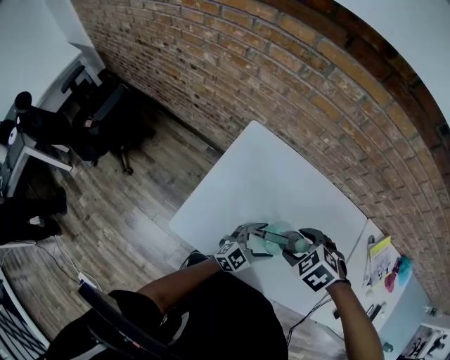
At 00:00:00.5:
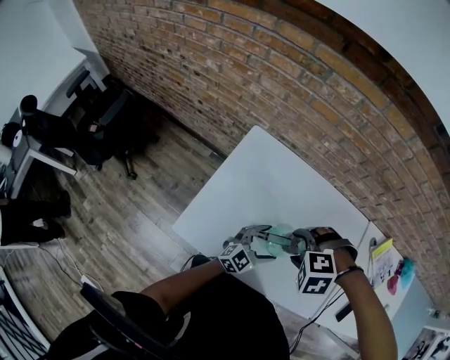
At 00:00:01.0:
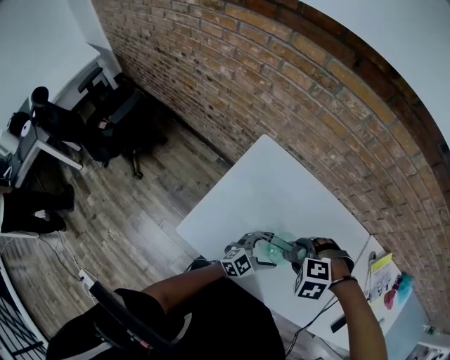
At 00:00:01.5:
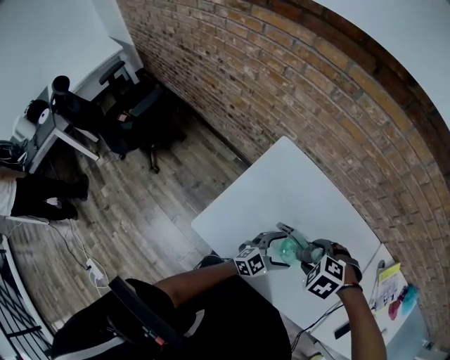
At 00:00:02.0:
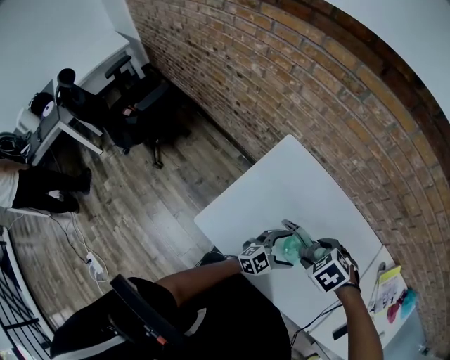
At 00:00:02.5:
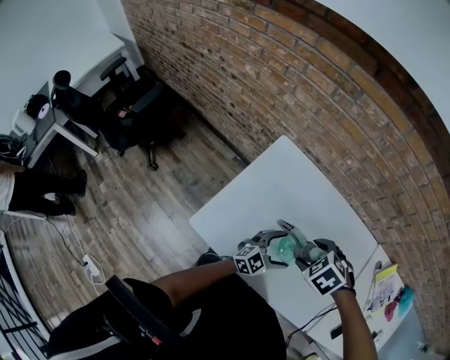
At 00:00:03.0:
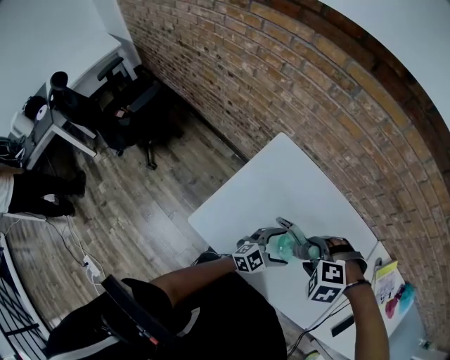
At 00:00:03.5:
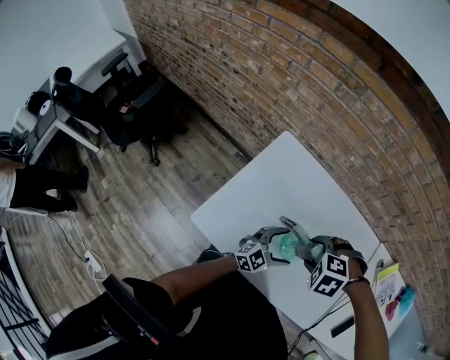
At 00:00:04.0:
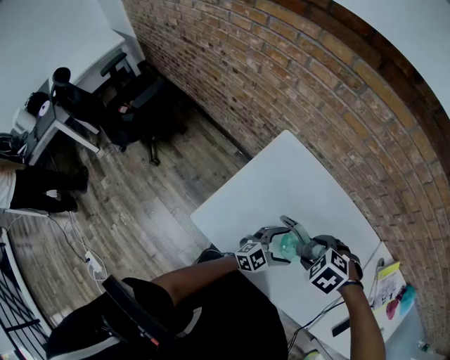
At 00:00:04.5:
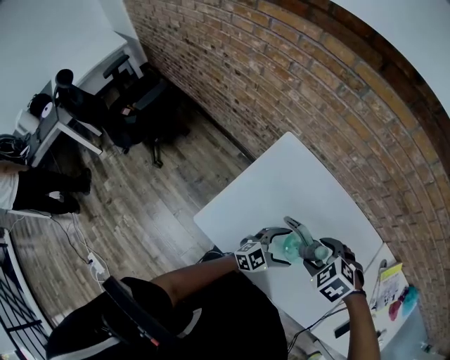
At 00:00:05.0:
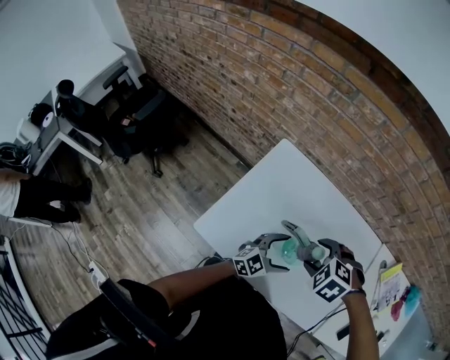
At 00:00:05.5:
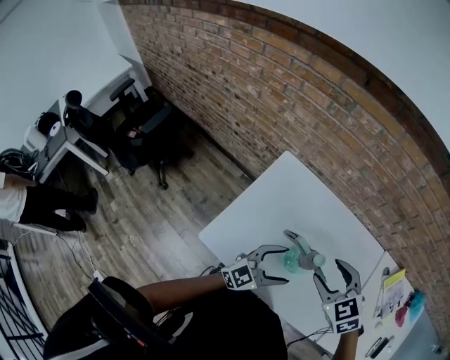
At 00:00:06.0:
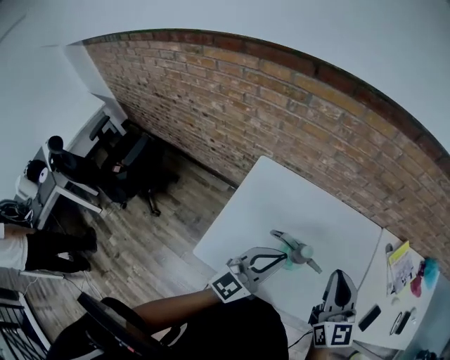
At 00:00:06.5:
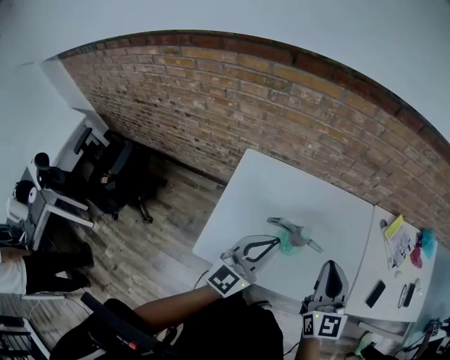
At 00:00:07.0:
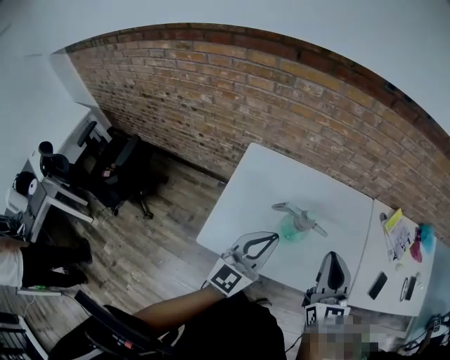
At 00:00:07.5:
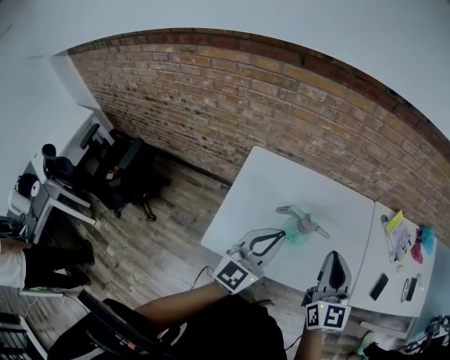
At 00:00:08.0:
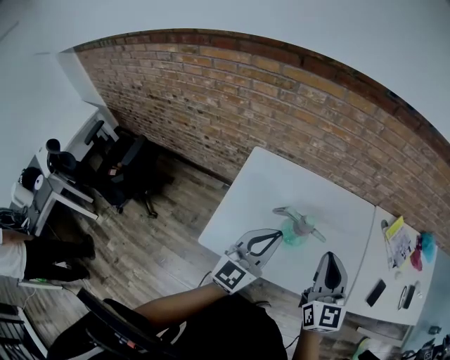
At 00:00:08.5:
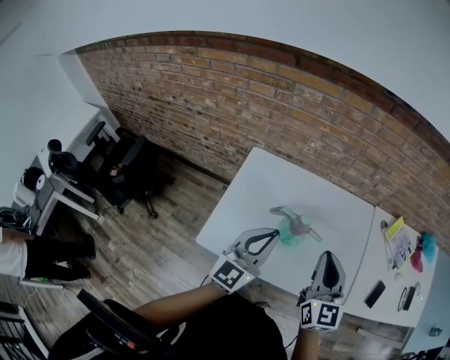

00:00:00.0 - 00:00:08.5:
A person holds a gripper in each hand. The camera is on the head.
00:00:04.0 - 00:00:06.5: The right gripper shifts some 20 cm upward, points its fingers approximately 80 degrees further upward, and closes up; the left gripper moves upward, some 25 cm, turns by approximately 20 degrees, and closes up.
00:00:06.5 - 00:00:08.5: There are only small adjustments of the grippers.

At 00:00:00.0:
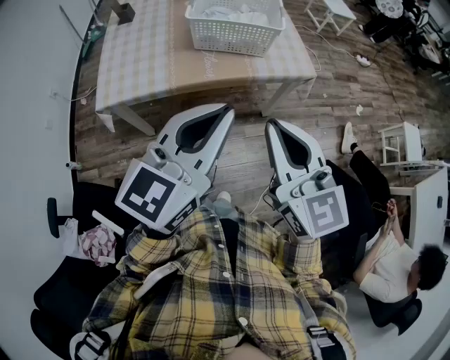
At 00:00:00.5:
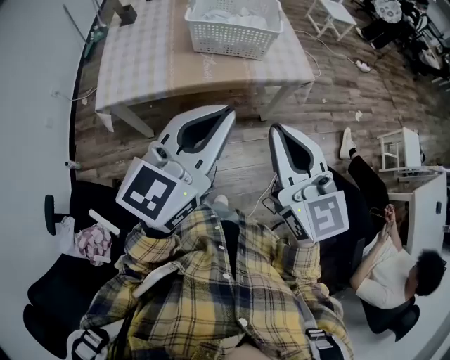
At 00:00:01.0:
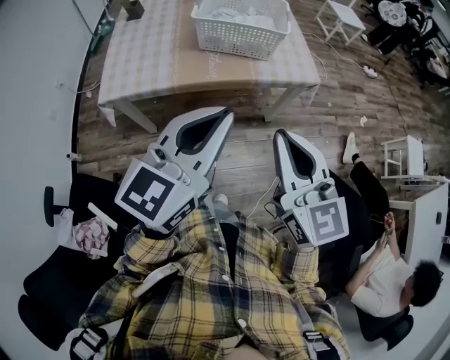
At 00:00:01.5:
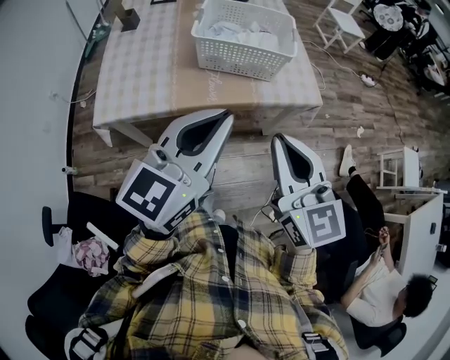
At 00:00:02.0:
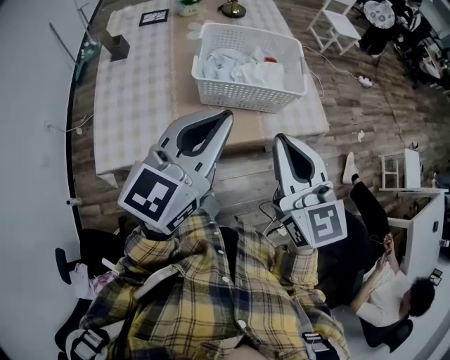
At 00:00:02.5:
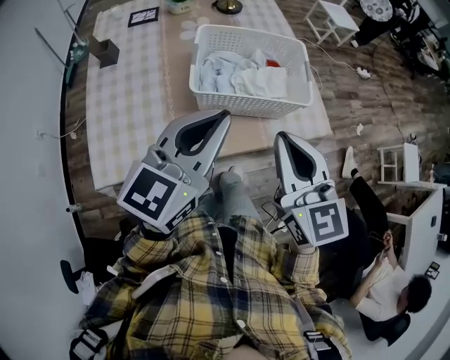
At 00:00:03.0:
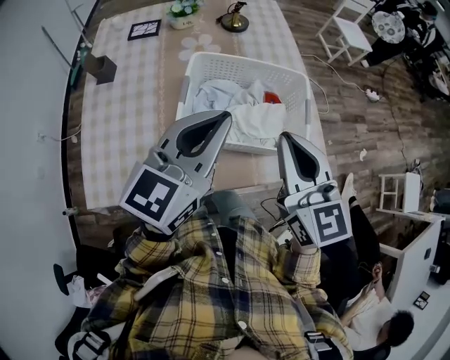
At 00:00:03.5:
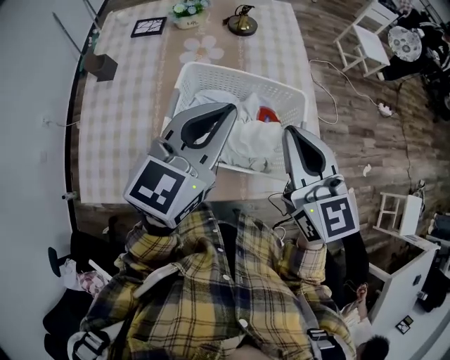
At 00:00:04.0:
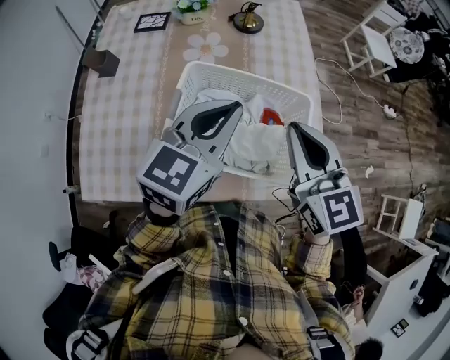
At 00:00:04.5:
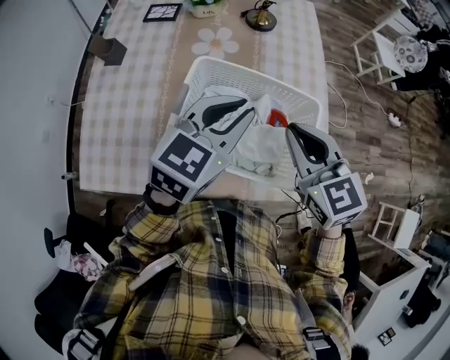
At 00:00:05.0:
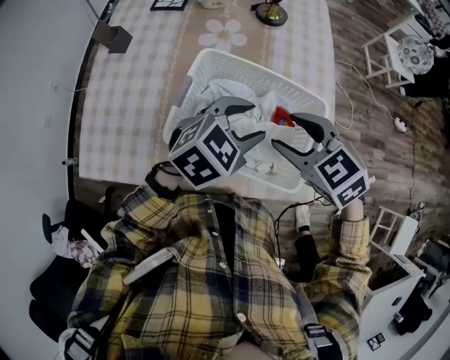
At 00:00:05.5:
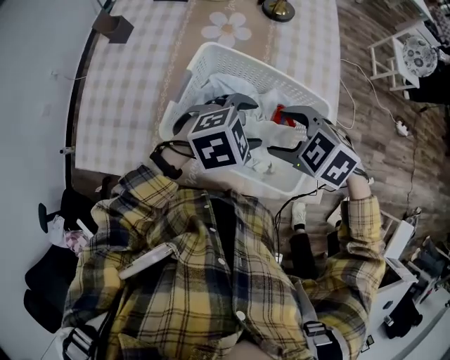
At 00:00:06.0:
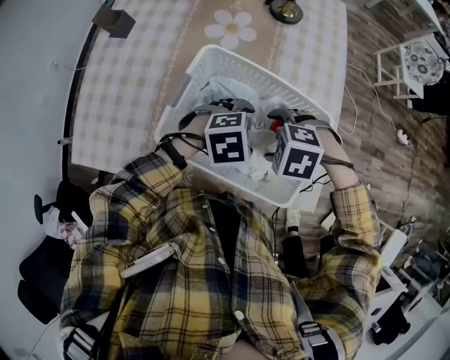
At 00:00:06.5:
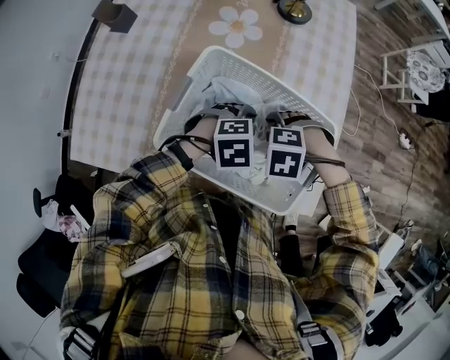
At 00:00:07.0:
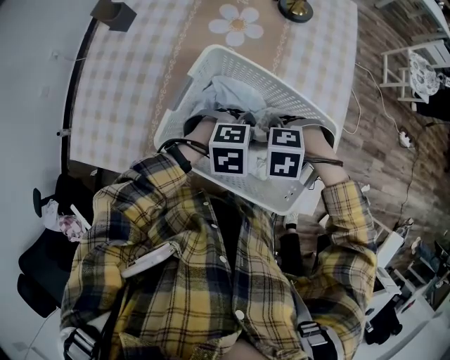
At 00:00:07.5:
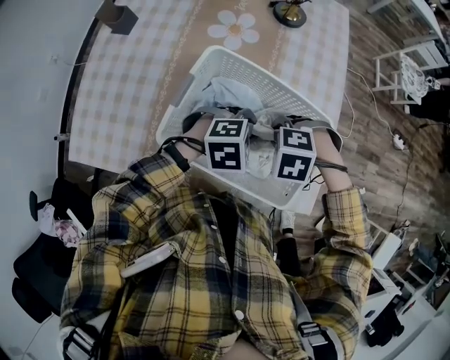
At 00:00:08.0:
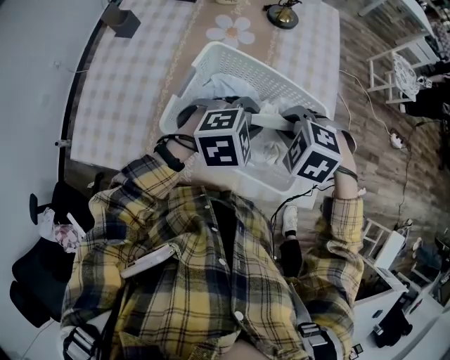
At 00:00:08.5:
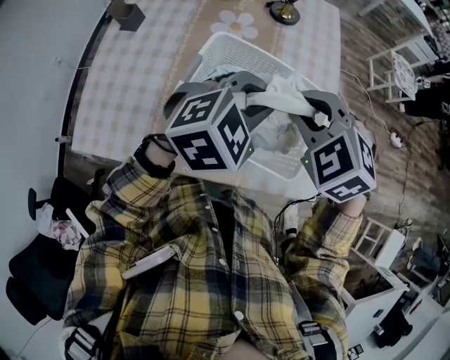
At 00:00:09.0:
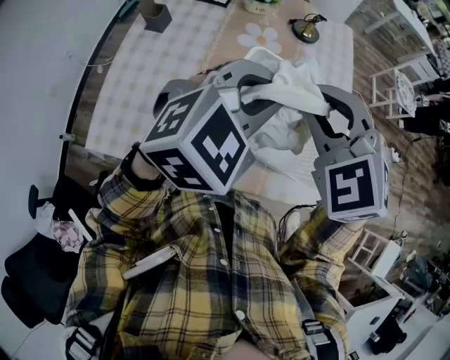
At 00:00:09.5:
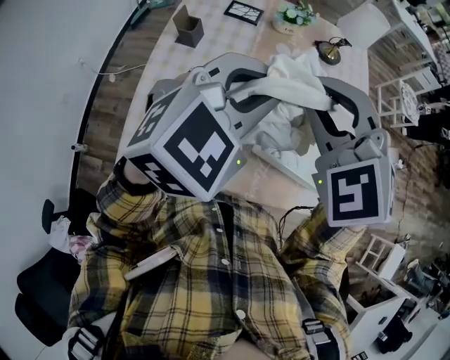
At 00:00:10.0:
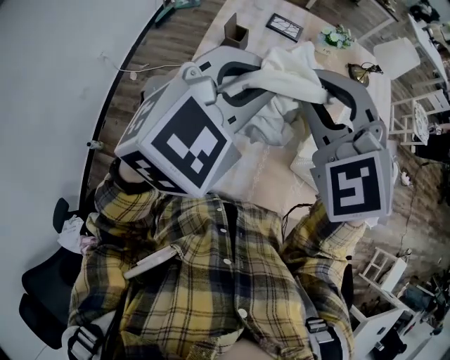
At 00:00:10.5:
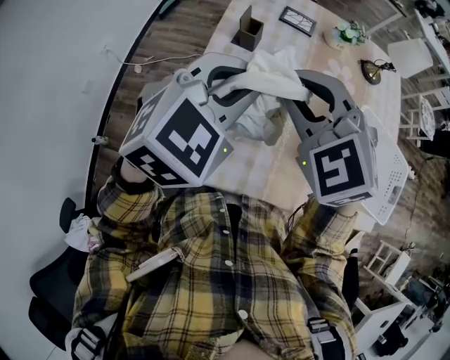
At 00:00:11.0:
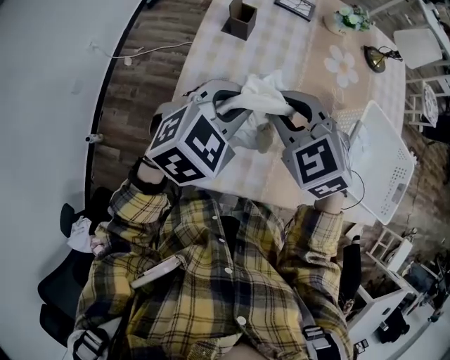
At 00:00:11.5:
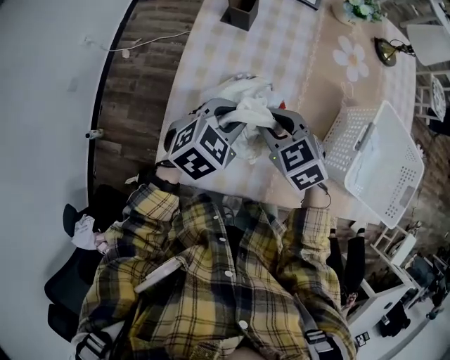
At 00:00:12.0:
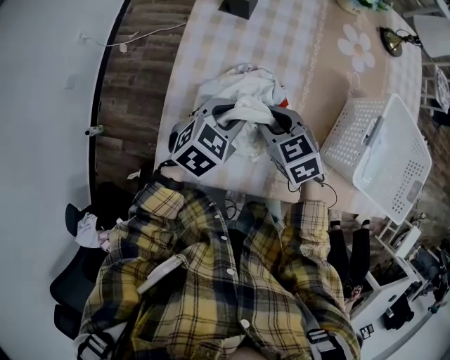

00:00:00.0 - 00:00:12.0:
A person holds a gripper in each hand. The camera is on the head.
00:00:00.0 - 00:00:02.0: Both grippers move forward, roughly 25 cm.
00:00:02.0 - 00:00:04.0: Both grippers travel together forward, approximately 30 cm.
00:00:04.0 - 00:00:06.0: Both grippers travel together downward, some 25 cm. The right gripper tips its fingers downward by roughly 60 degrees, and opens; the left gripper points its fingers roughly 50 degrees further downward, and opens.
00:00:06.0 - 00:00:08.0: The grippers both shift upward by approximately 5 cm. The right gripper closes its fingers. The left gripper closes up.
00:00:08.0 - 00:00:10.0: The two grippers travel together, to the left, some 40 cm. Both grippers travel together upward, about 25 cm. The left gripper swivels some 30 degrees. The right gripper tips its fingers upward by about 40 degrees.
00:00:10.0 - 00:00:12.0: Both grippers move downward, approximately 35 cm. The left gripper changes its angle by approximately 40 degrees. The right gripper rotates around the line of its fingers by roughly 40 degrees, clockwise from behind.

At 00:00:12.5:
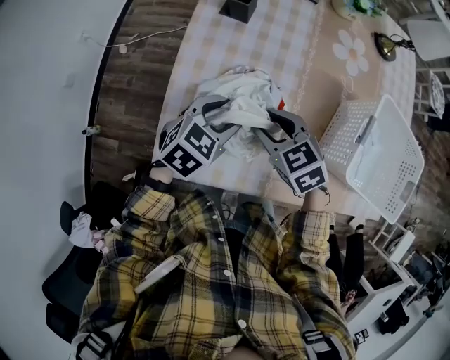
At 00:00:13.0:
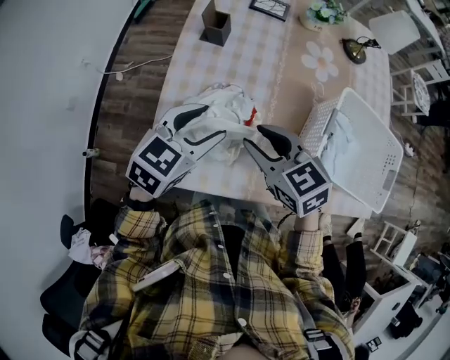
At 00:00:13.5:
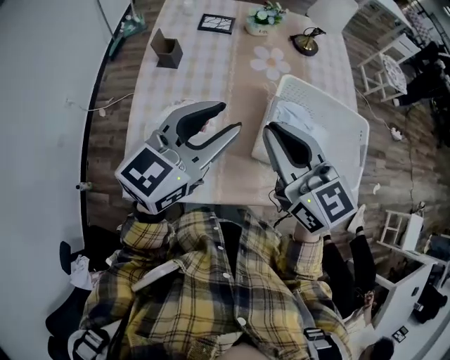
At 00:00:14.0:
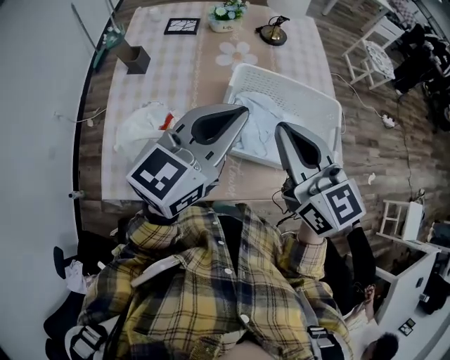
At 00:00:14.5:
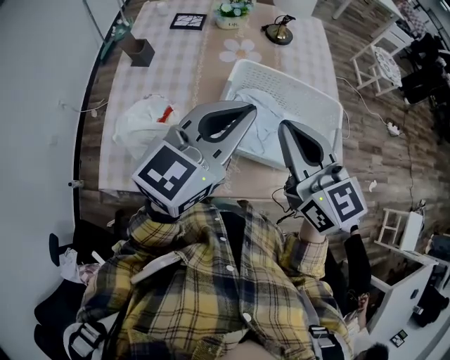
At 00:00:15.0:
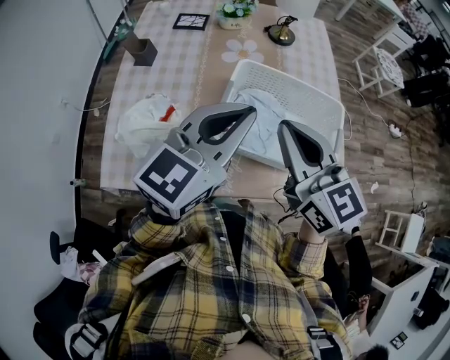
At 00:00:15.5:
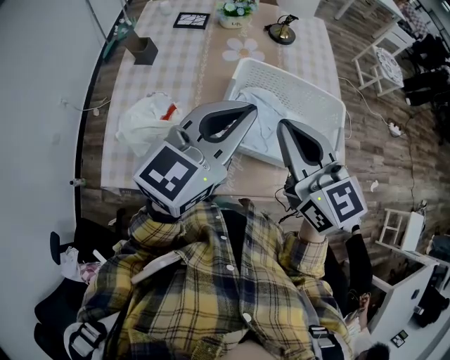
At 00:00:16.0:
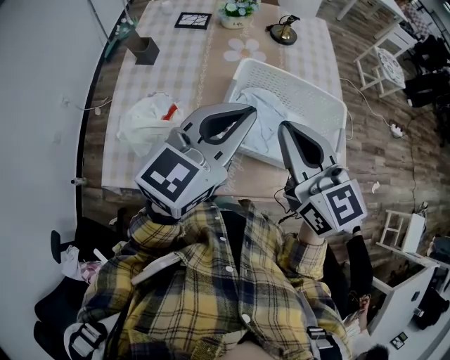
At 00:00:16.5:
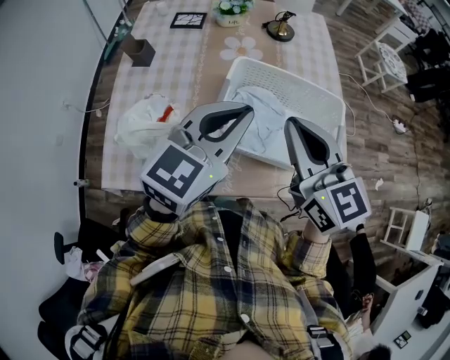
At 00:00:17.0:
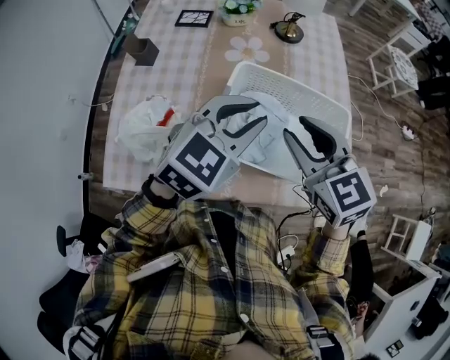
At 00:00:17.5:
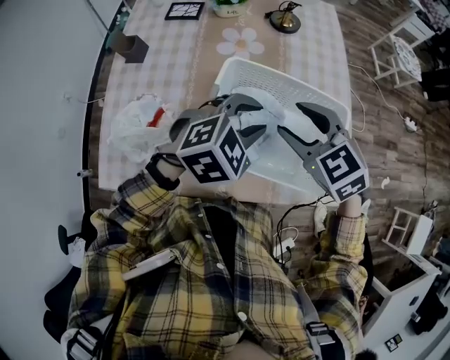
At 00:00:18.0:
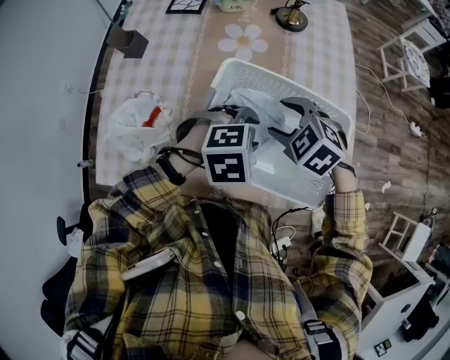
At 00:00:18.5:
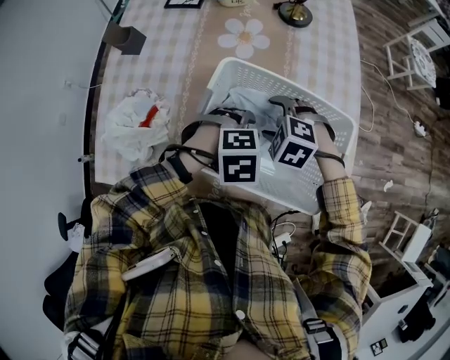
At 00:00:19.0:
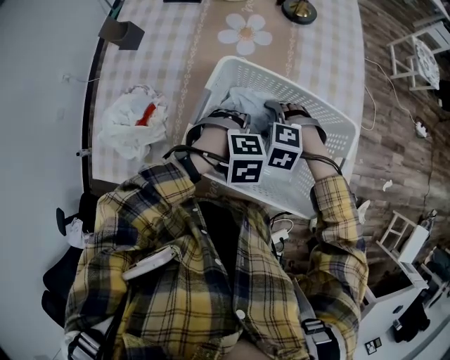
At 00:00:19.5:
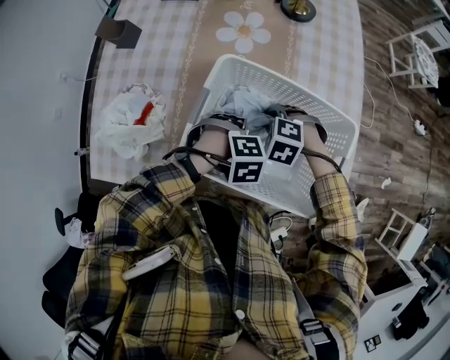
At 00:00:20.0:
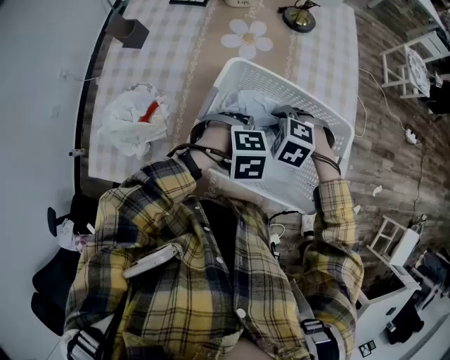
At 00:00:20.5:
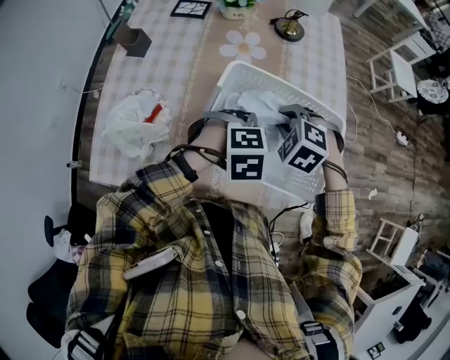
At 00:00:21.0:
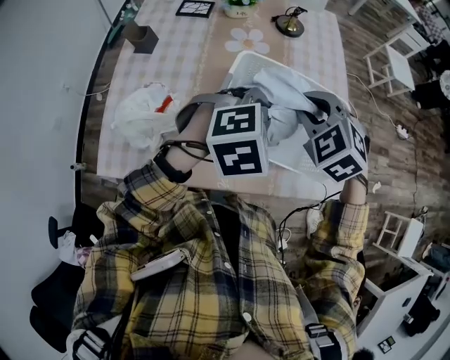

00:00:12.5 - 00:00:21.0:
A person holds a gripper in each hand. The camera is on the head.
00:00:12.5 - 00:00:14.5: Both grippers move to the right and upward, about 40 cm. The left gripper points its fingers roughly 40 degrees further upward, and closes its fingers. Meanwhile the right gripper tilts its fingers some 40 degrees upward, and closes.
00:00:14.5 - 00:00:16.5: There are only small adjustments of the grippers.
00:00:16.5 - 00:00:19.0: The two grippers go approximately 30 cm downward. The right gripper points its fingers about 60 degrees further downward, and opens its fingers; the left gripper points its fingers approximately 70 degrees further downward, and opens up.
00:00:19.0 - 00:00:21.0: The two grippers go roughly 20 cm upward. The right gripper swivels approximately 30 degrees, and closes its fingers, while the left gripper points its fingers approximately 30 degrees further upward, and closes.
